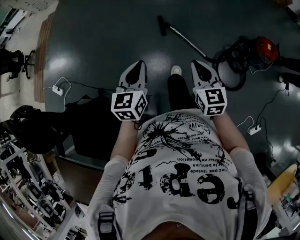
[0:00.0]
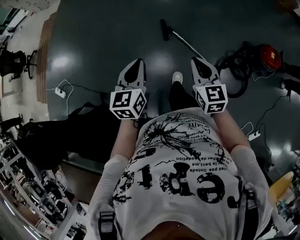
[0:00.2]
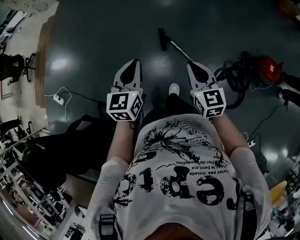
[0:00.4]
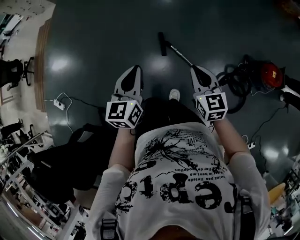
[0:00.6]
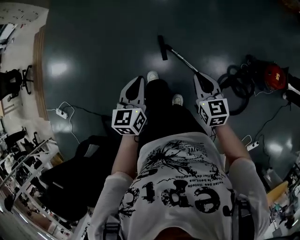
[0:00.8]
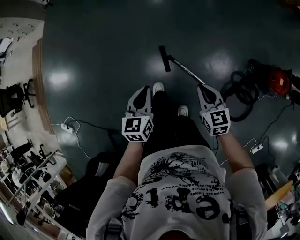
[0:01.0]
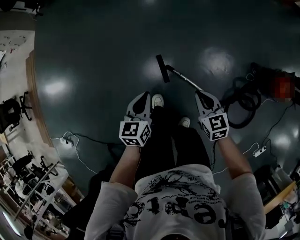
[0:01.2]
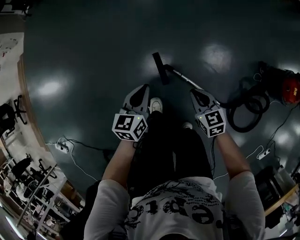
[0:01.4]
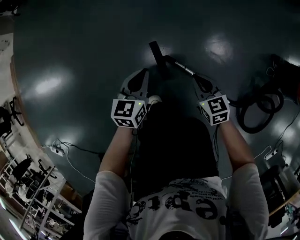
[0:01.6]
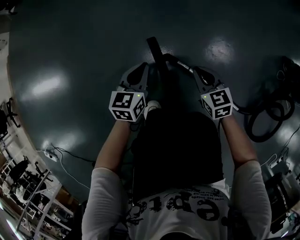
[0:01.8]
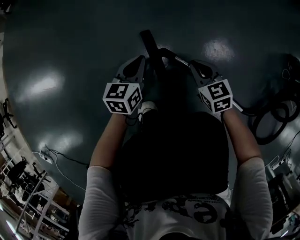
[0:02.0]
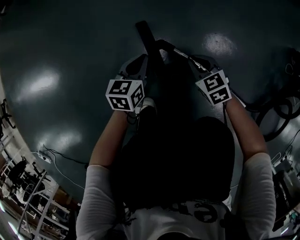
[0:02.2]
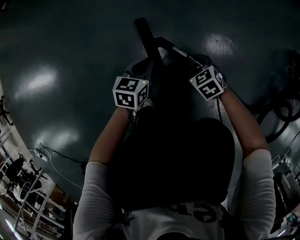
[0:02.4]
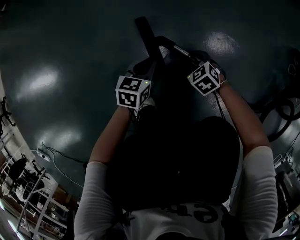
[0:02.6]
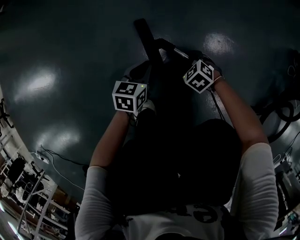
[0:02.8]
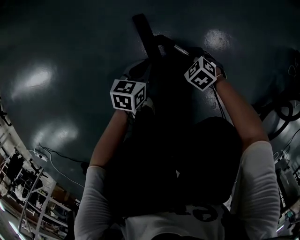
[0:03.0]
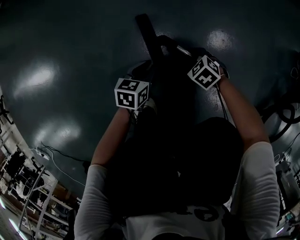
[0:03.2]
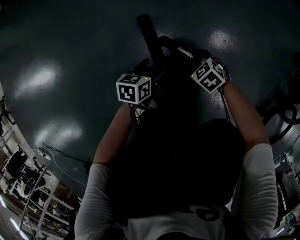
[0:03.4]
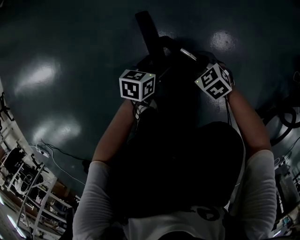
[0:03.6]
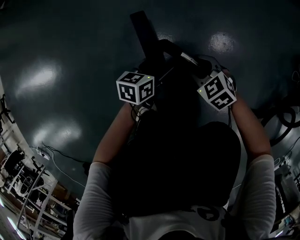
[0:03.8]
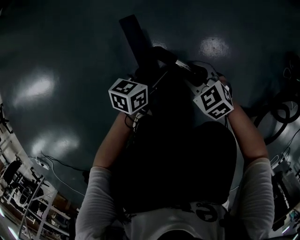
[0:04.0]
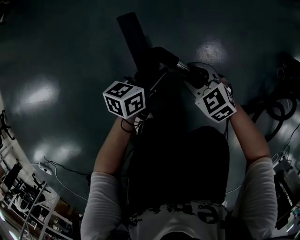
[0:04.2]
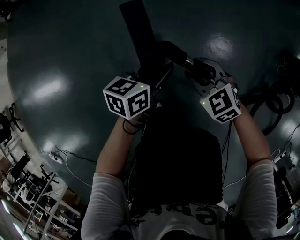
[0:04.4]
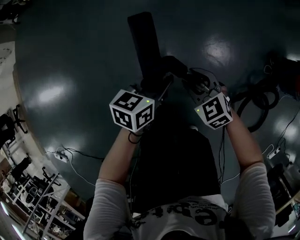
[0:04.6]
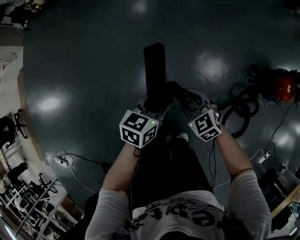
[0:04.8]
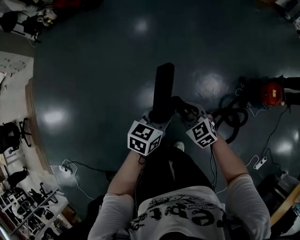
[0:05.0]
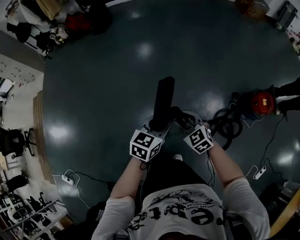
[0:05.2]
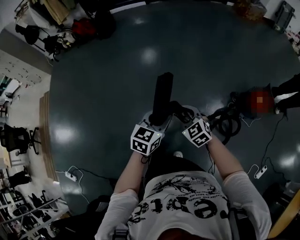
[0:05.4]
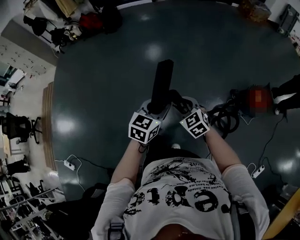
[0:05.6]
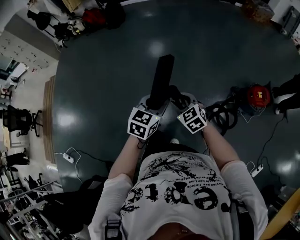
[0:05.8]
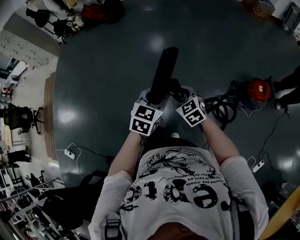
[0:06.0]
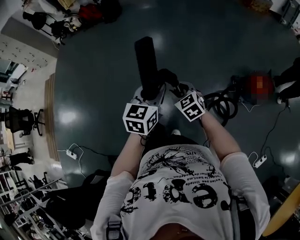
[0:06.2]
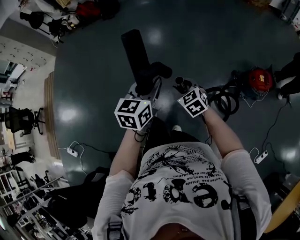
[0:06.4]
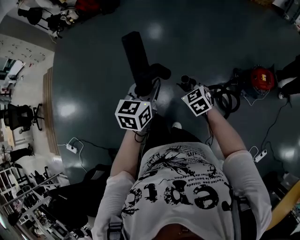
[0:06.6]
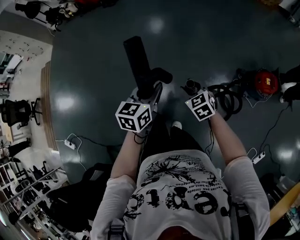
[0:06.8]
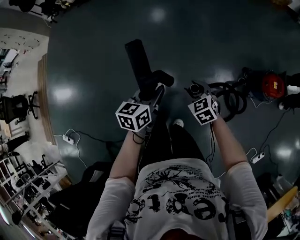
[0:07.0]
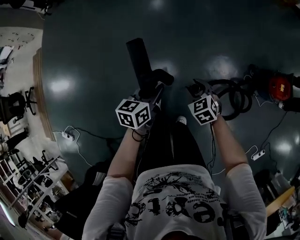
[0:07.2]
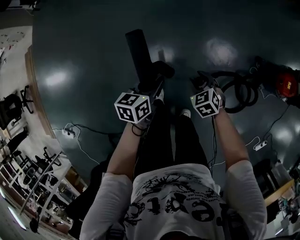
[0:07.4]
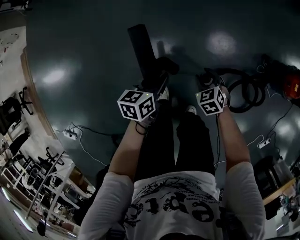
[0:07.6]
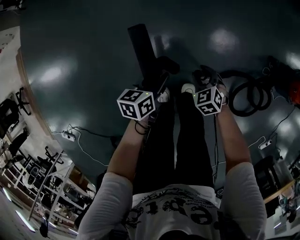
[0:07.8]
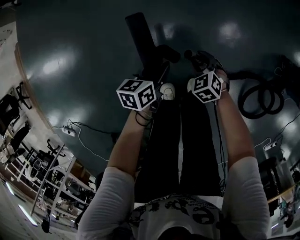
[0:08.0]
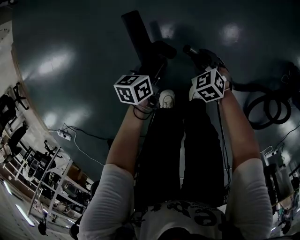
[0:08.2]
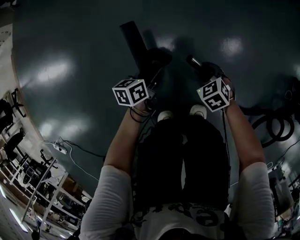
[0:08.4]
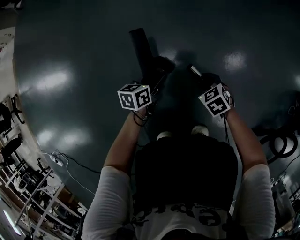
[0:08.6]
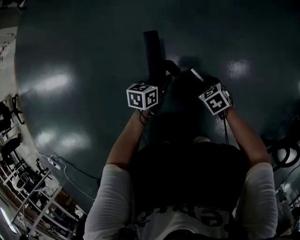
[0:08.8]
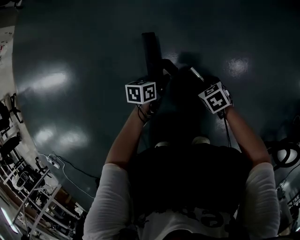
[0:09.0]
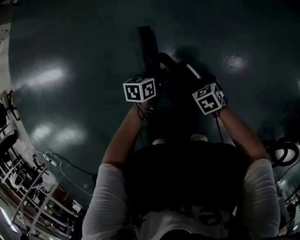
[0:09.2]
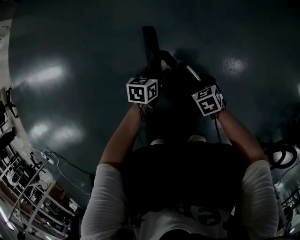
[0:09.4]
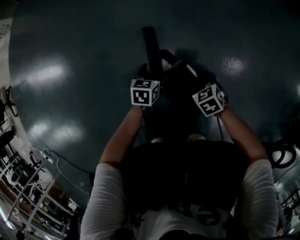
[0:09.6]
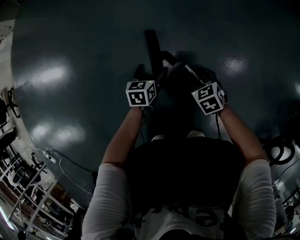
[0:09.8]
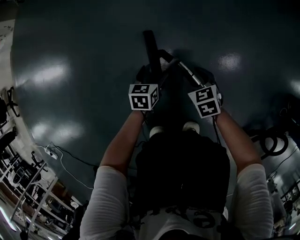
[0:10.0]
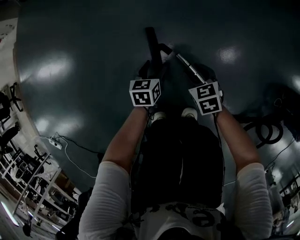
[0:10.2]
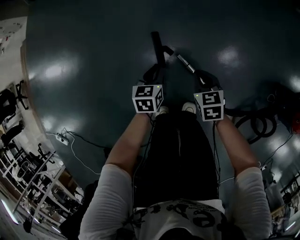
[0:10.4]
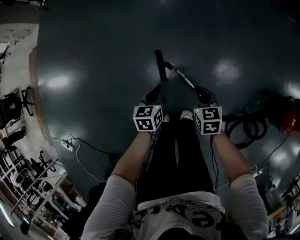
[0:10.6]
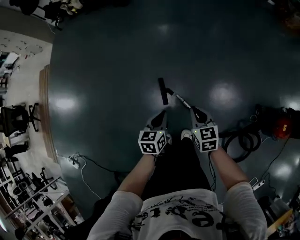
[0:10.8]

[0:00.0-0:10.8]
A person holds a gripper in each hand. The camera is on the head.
0:00.0 to 0:01.6: Both grippers are carried forward, about 60 cm. The two grippers go about 60 cm downward. The left gripper rotates some 20 degrees.
0:01.6 to 0:03.0: Both grippers travel together downward, some 35 cm. The right gripper rotates about 40 degrees, and opens.
0:03.0 to 0:04.6: The two grippers go approximately 40 cm upward. The right gripper turns by roughly 30 degrees. The left gripper opens, then closes once more.
0:04.6 to 0:06.2: The two grippers go approximately 50 cm upward. The left gripper rotates about 30 degrees.
0:06.2 to 0:07.8: Both grippers move downward and forward, some 50 cm. The right gripper swivels roughly 20 degrees, while the left gripper changes its angle by about 40 degrees.
0:07.8 to 0:09.2: The two grippers go approximately 50 cm downward.
0:09.2 to 0:10.8: Both grippers move upward, some 70 cm. The left gripper swivels some 20 degrees, and opens, then closes once more. The right gripper swivels approximately 40 degrees, and closes up.

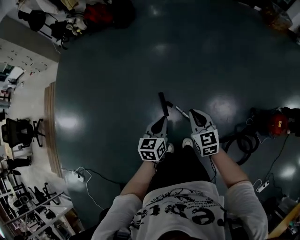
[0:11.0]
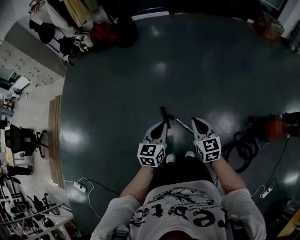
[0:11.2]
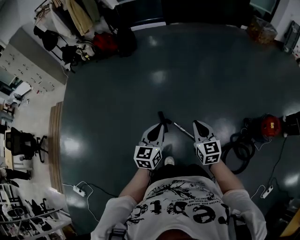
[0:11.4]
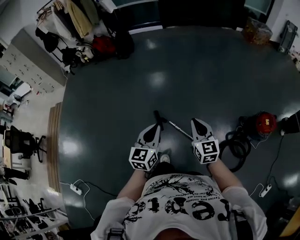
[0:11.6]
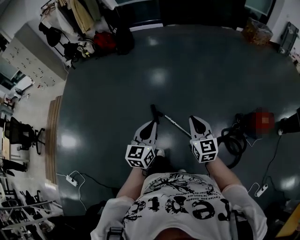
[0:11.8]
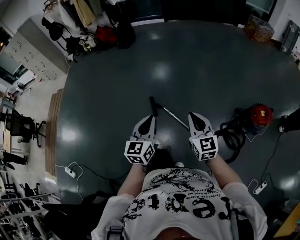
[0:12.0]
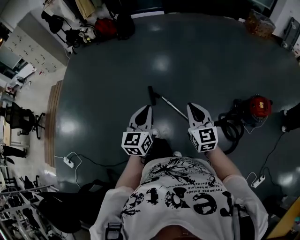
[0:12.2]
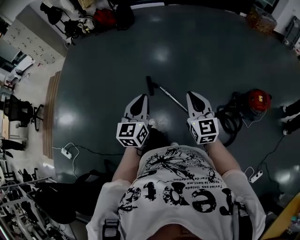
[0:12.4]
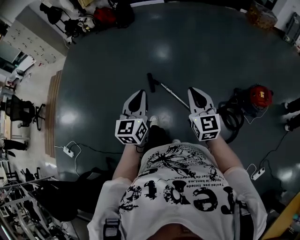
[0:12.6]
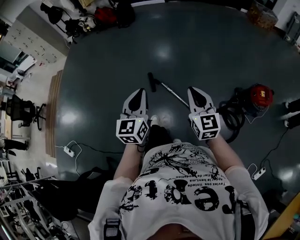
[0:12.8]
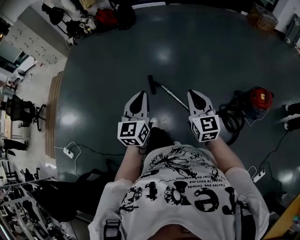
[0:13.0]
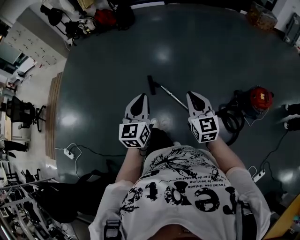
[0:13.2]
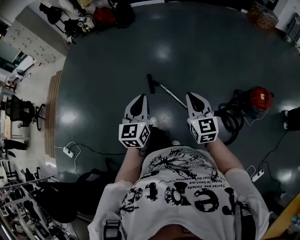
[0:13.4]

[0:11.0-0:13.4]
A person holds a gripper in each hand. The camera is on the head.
0:11.0 to 0:12.2: The left gripper moves backward and upward, roughly 40 cm, and turns by approximately 20 degrees; the right gripper is displaced backward, upward and to the right by approximately 40 cm.
0:12.2 to 0:13.4: There are only small adjustments of the grippers.

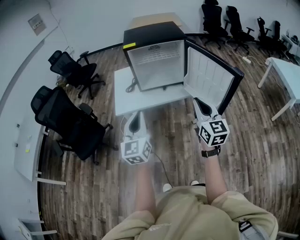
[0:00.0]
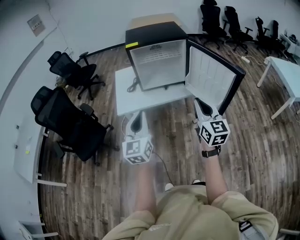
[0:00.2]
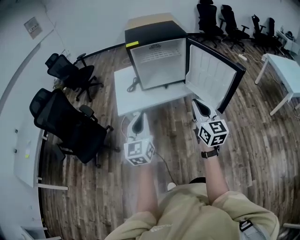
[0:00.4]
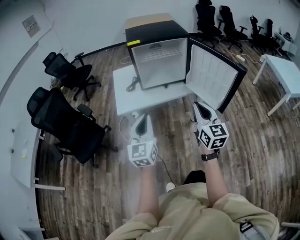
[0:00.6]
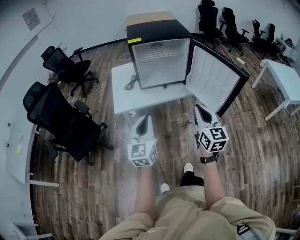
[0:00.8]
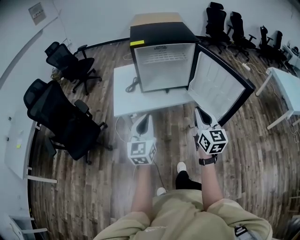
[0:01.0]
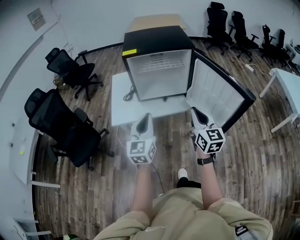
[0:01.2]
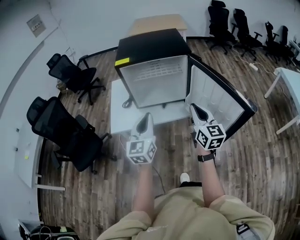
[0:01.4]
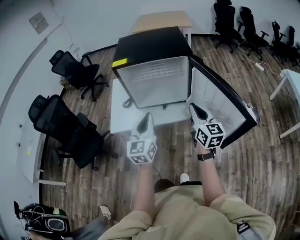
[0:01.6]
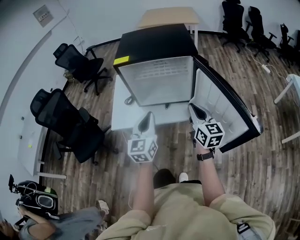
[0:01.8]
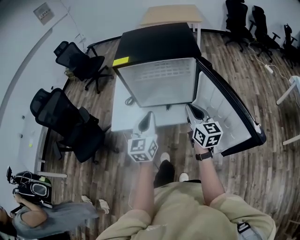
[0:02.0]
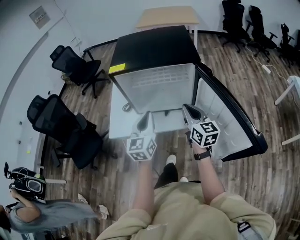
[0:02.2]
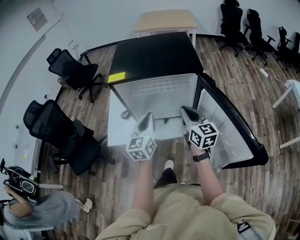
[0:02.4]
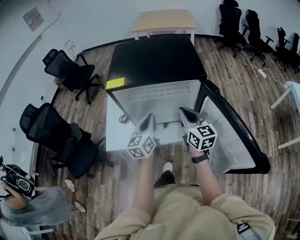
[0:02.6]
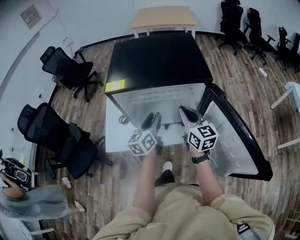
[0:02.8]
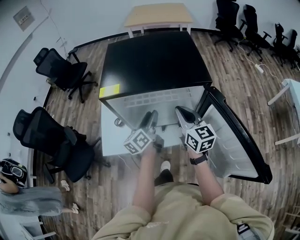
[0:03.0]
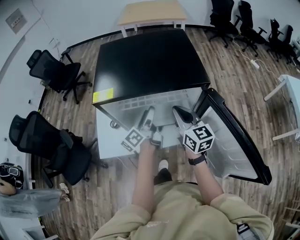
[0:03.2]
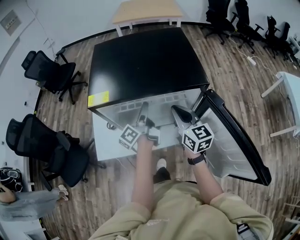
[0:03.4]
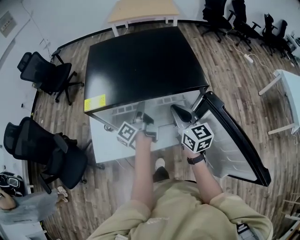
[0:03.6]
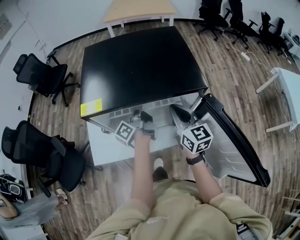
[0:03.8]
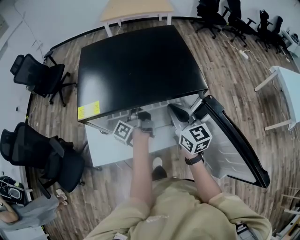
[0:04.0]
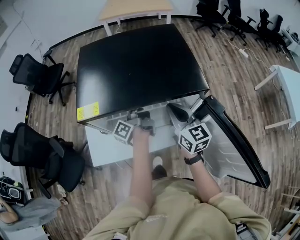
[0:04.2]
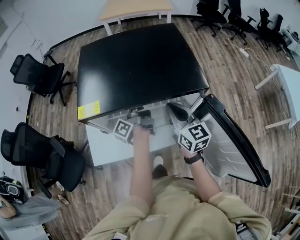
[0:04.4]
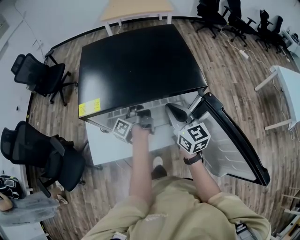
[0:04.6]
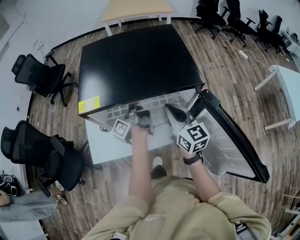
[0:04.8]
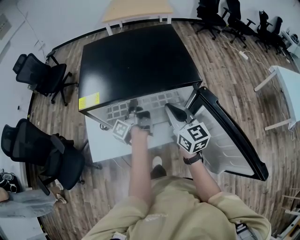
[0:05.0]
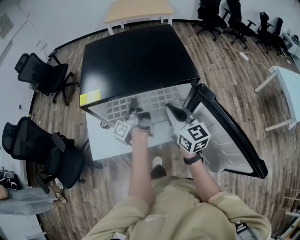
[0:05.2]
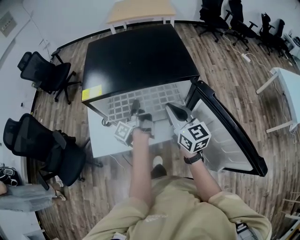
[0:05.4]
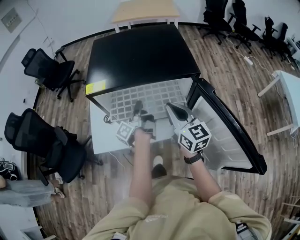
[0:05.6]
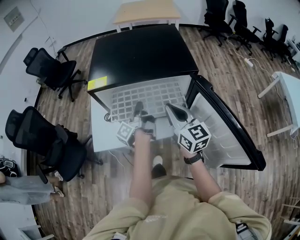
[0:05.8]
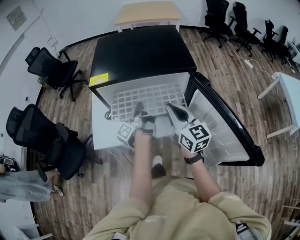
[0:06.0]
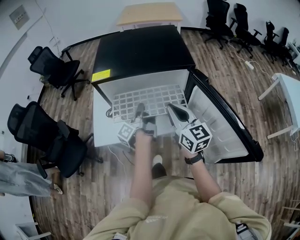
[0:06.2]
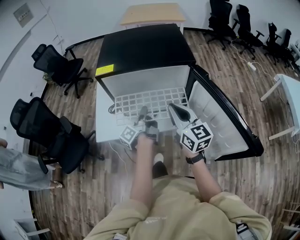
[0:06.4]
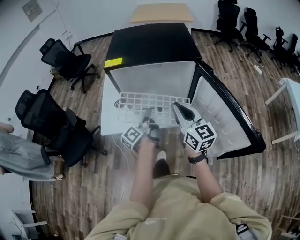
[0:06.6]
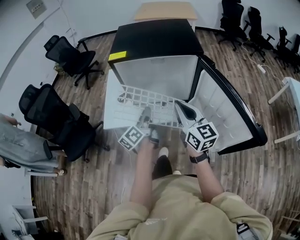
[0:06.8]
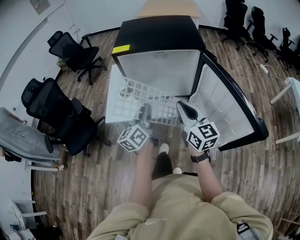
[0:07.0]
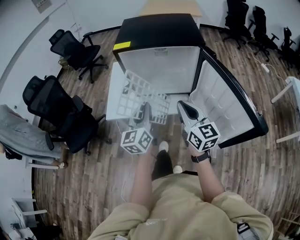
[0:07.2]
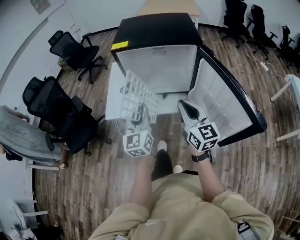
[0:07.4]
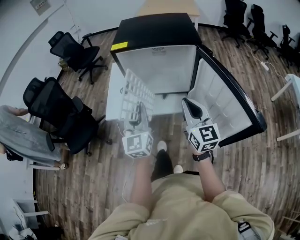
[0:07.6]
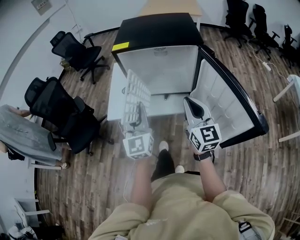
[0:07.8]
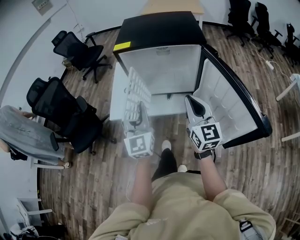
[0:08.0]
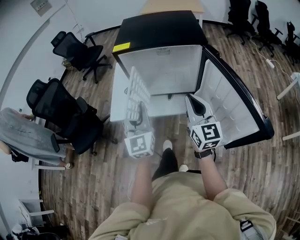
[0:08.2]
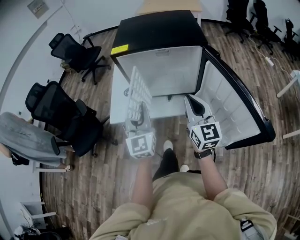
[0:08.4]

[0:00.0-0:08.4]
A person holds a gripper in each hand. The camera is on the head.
0:00.0 to 0:01.4: The two grippers go approximately 20 cm forward.
0:01.4 to 0:02.8: The two grippers go roughly 30 cm forward. The left gripper turns by about 30 degrees, and opens its fingers.
0:02.8 to 0:04.2: The right gripper heads forward, covering approximately 10 cm. The left gripper goes about 15 cm forward, rolls counterclockwise, seen from behind, by approximately 50 degrees, and opens, then closes once more.
0:04.2 to 0:05.6: Both grippers travel together backward, about 10 cm.
0:05.6 to 0:07.0: Both grippers travel together backward, approximately 20 cm. The left gripper rolls clockwise, seen from behind, by about 50 degrees.
0:07.0 to 0:08.4: The left gripper twists about 50 degrees clockwise, seen from behind.

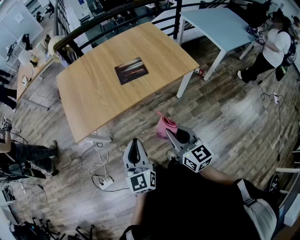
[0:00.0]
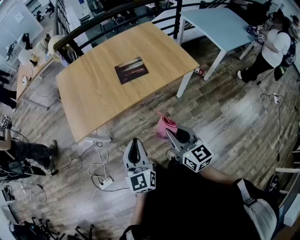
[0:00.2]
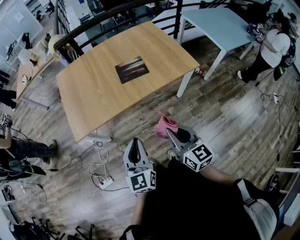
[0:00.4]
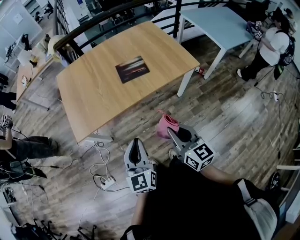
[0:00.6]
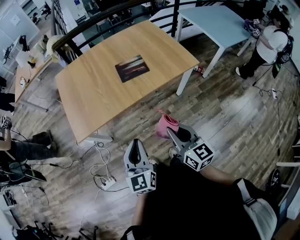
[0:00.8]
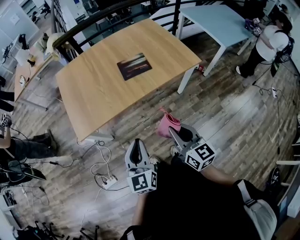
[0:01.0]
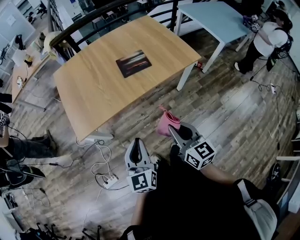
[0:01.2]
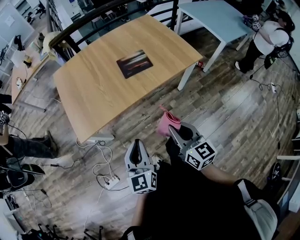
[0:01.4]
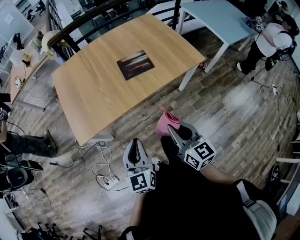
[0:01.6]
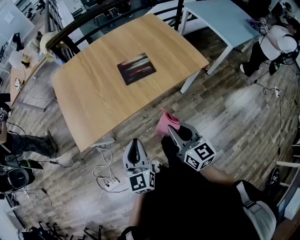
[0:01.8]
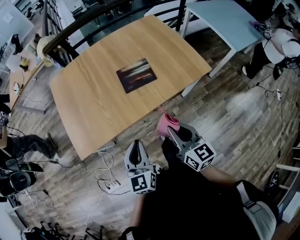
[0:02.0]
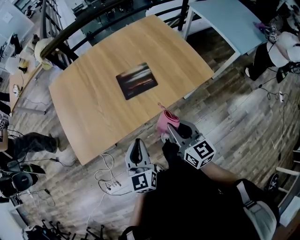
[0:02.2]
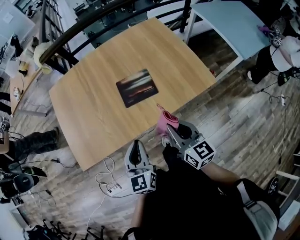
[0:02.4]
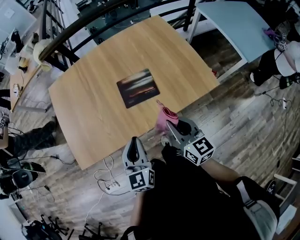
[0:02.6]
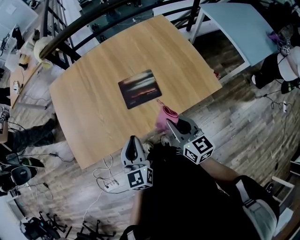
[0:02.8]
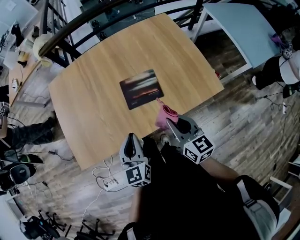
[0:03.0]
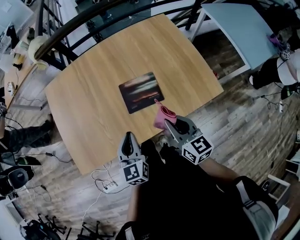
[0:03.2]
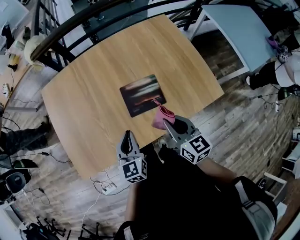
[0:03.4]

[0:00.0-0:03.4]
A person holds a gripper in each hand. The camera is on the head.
0:00.0 to 0:01.6: The grippers both shift to the left and forward by about 10 cm.
0:01.6 to 0:03.4: Both grippers move forward, some 35 cm.
